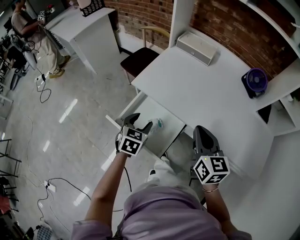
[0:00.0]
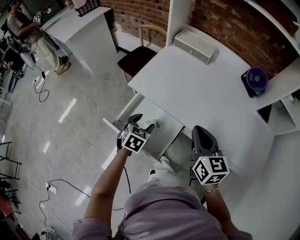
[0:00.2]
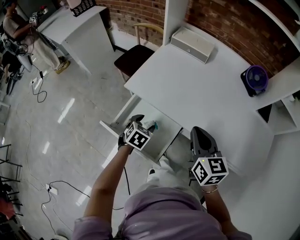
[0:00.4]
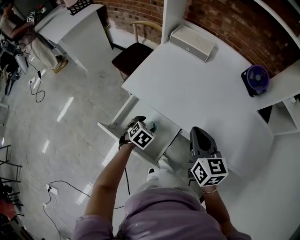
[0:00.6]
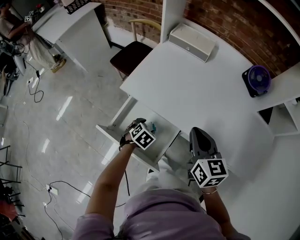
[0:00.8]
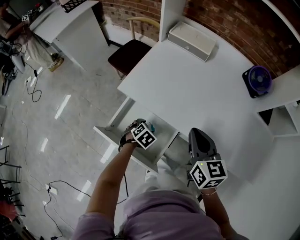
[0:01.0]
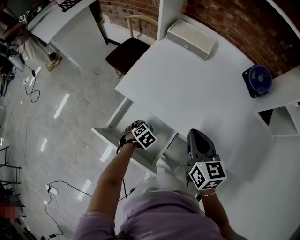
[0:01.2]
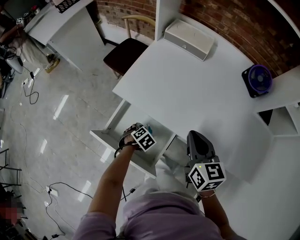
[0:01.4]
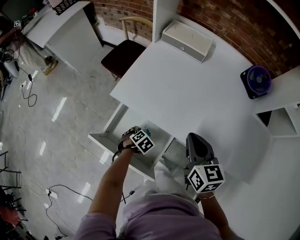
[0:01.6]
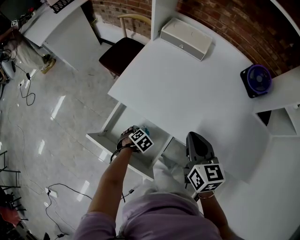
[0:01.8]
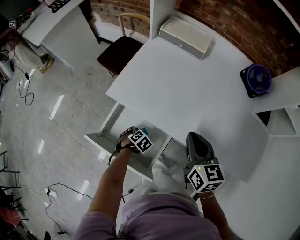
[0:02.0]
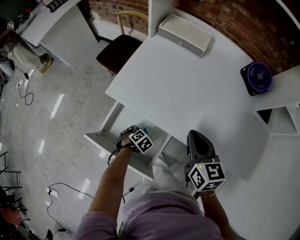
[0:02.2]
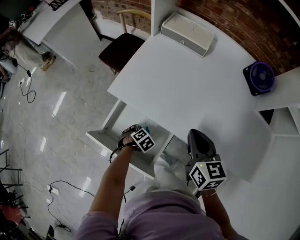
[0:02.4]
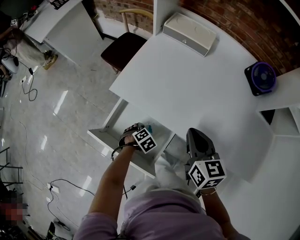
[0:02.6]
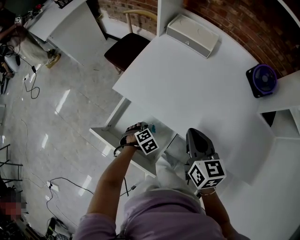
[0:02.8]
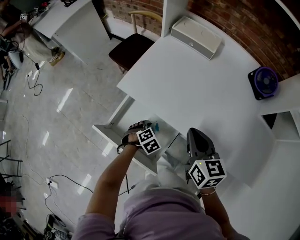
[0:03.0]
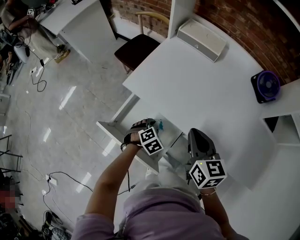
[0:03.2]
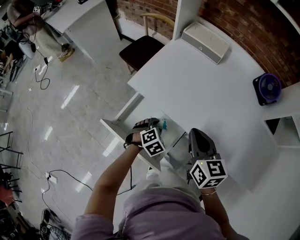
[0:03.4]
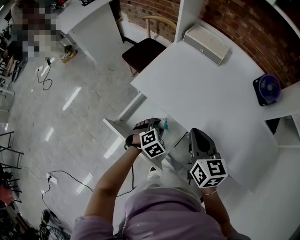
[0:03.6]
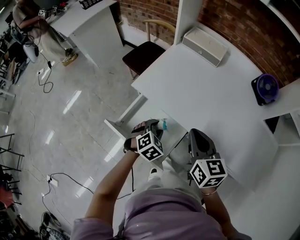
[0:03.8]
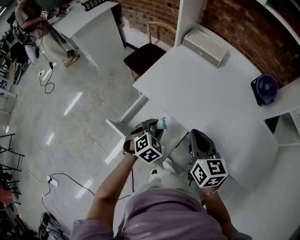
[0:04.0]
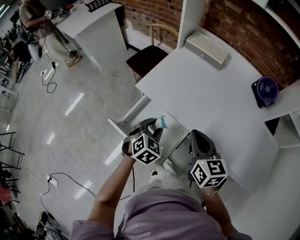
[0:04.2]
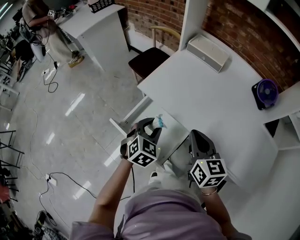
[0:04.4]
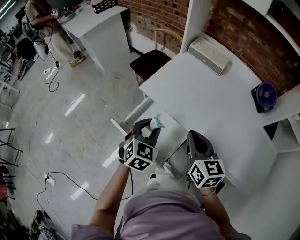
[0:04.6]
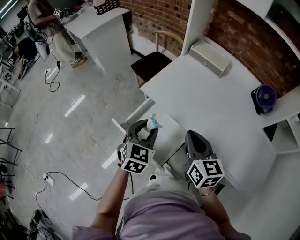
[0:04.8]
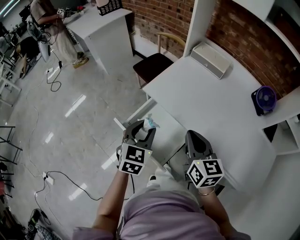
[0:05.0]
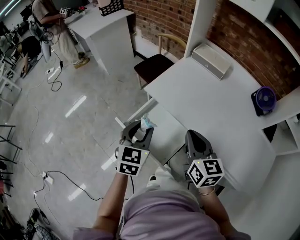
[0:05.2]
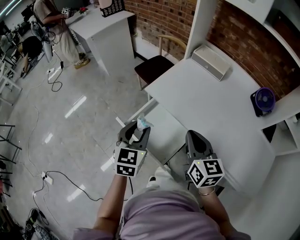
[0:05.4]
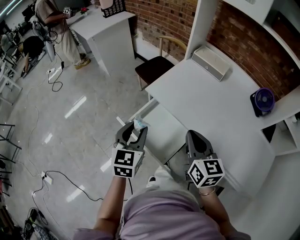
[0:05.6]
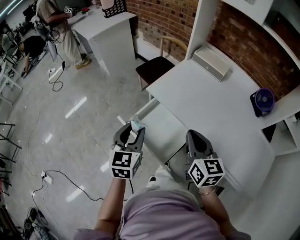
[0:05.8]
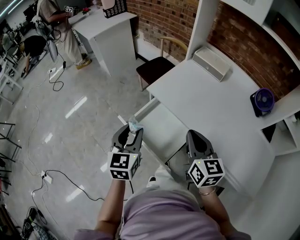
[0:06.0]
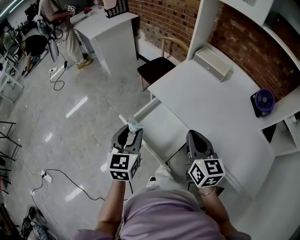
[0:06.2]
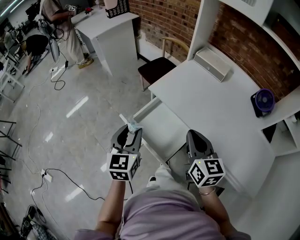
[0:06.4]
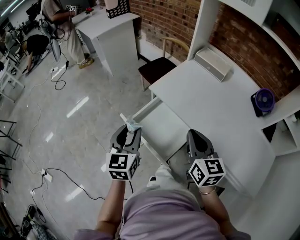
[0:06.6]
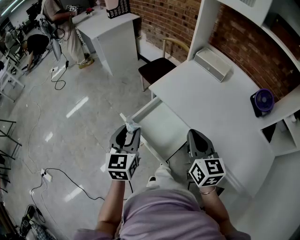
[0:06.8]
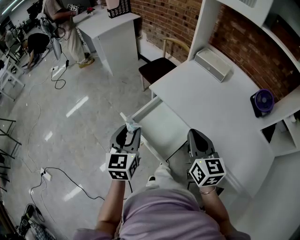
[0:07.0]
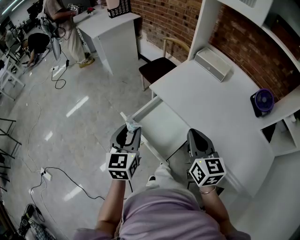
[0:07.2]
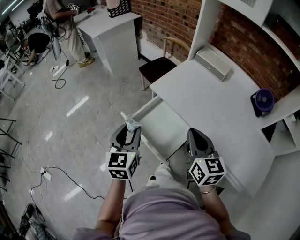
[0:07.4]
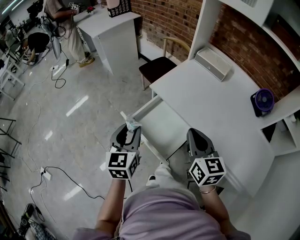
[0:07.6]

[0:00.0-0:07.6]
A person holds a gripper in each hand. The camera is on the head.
0:00.0 to 0:01.6: The left gripper moves downward, about 25 cm, and tips its fingers downward by about 40 degrees, while the right gripper moves some 10 cm.
0:01.6 to 0:03.0: The left gripper shifts by approximately 5 cm, and closes its fingers.
0:03.0 to 0:04.6: The left gripper moves upward, roughly 25 cm, and tips its fingers upward by roughly 40 degrees. Meanwhile the right gripper travels to the left by about 5 cm.
0:04.6 to 0:06.0: The left gripper goes some 15 cm to the left, upward and backward, and swivels some 30 degrees. Meanwhile the right gripper ends up approximately 5 cm from where it was.
0:06.0 to 0:07.6: There are only small adjustments of the grippers.

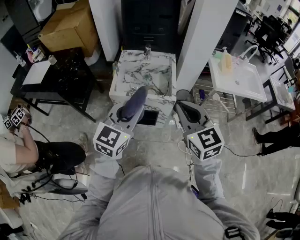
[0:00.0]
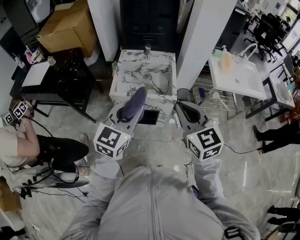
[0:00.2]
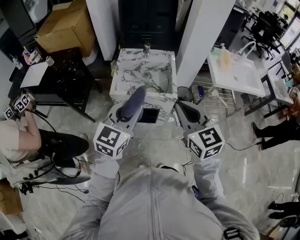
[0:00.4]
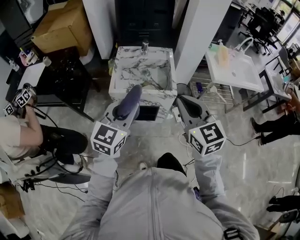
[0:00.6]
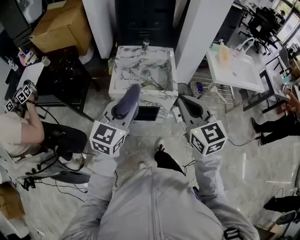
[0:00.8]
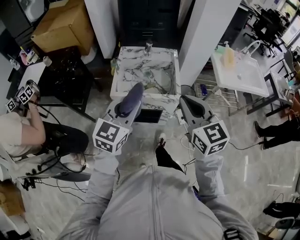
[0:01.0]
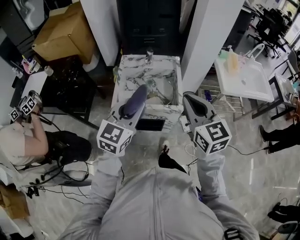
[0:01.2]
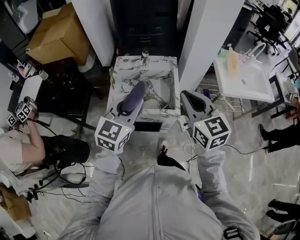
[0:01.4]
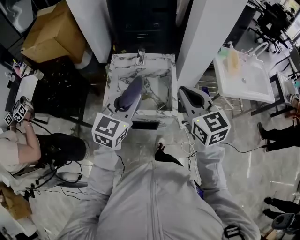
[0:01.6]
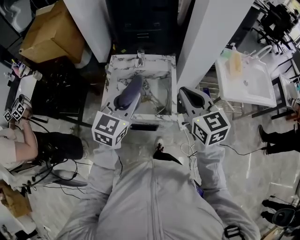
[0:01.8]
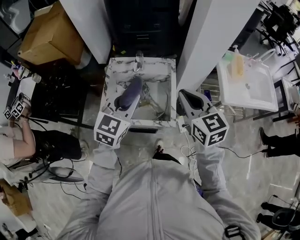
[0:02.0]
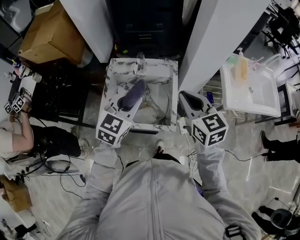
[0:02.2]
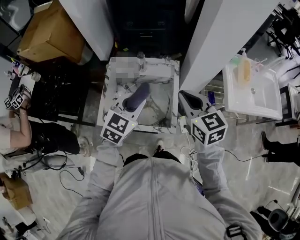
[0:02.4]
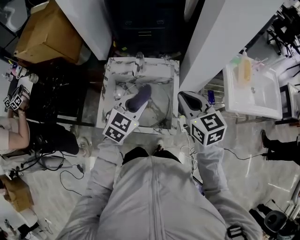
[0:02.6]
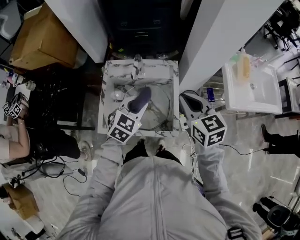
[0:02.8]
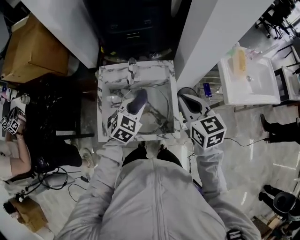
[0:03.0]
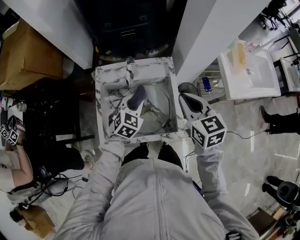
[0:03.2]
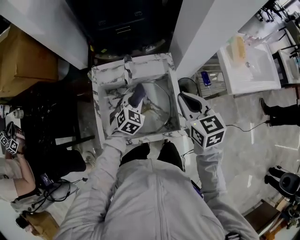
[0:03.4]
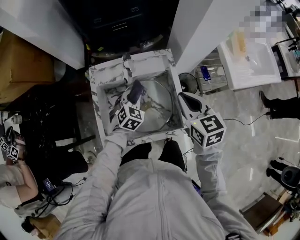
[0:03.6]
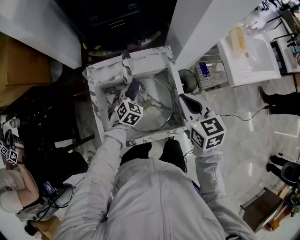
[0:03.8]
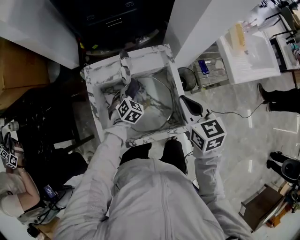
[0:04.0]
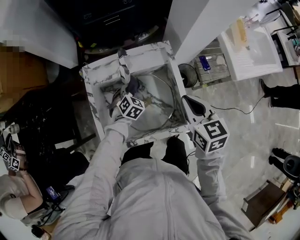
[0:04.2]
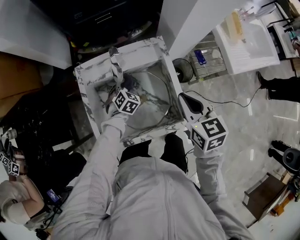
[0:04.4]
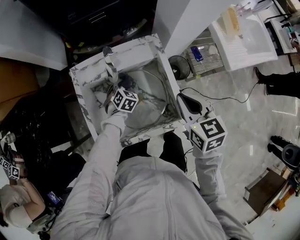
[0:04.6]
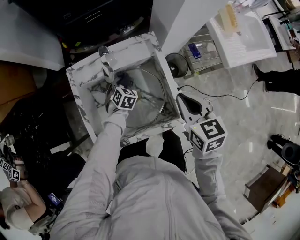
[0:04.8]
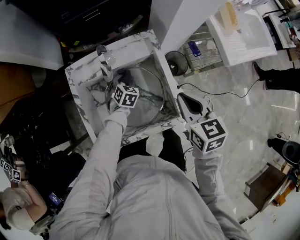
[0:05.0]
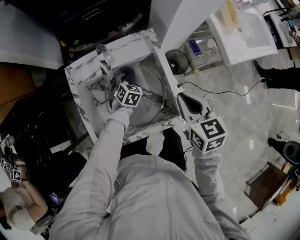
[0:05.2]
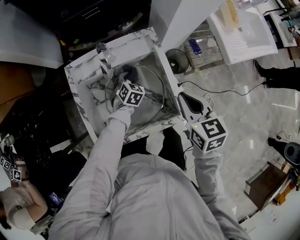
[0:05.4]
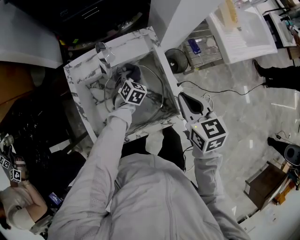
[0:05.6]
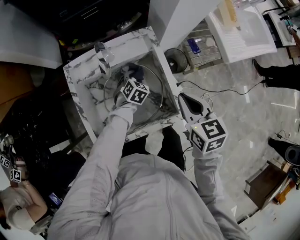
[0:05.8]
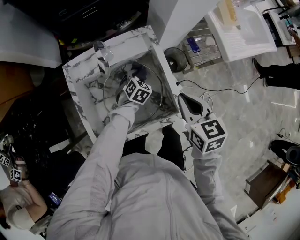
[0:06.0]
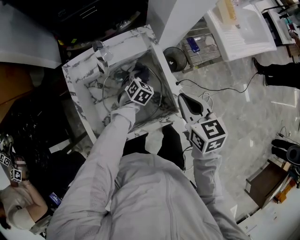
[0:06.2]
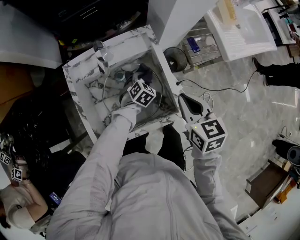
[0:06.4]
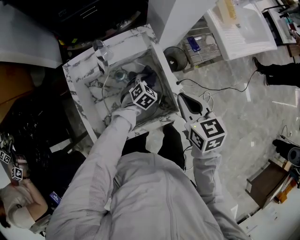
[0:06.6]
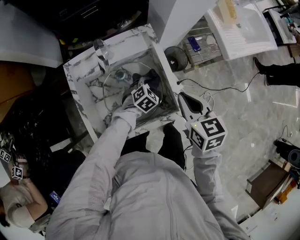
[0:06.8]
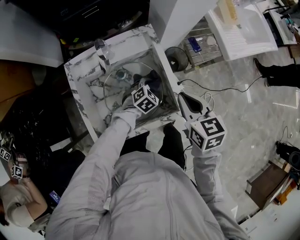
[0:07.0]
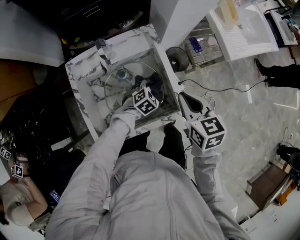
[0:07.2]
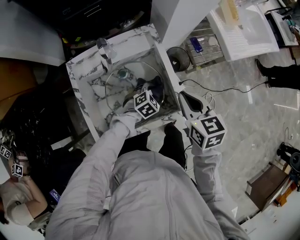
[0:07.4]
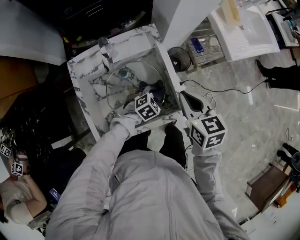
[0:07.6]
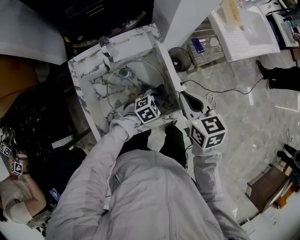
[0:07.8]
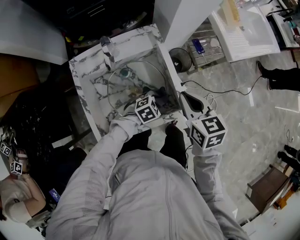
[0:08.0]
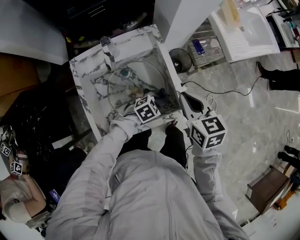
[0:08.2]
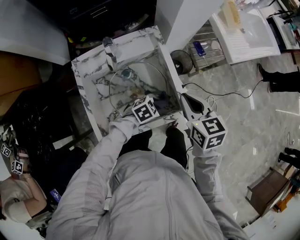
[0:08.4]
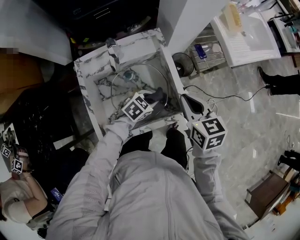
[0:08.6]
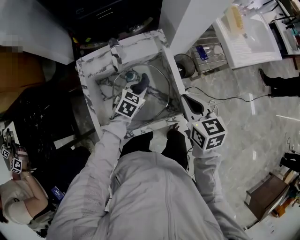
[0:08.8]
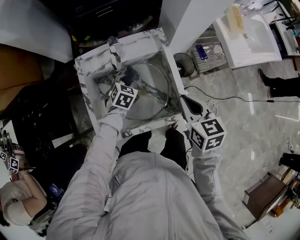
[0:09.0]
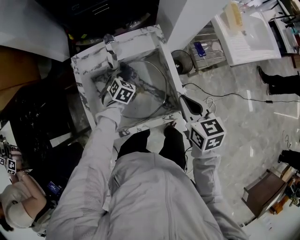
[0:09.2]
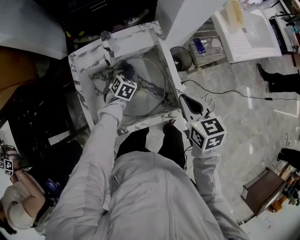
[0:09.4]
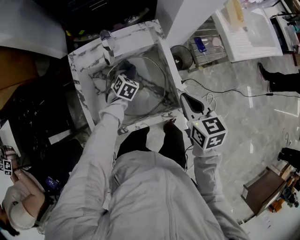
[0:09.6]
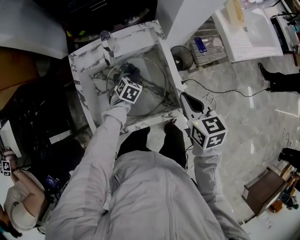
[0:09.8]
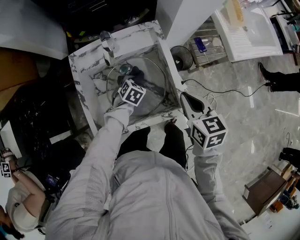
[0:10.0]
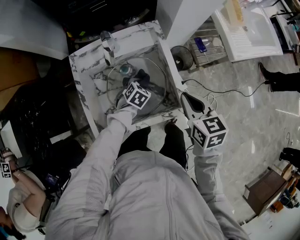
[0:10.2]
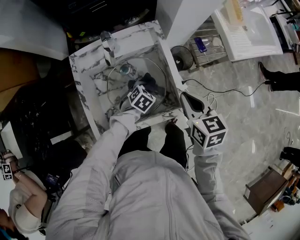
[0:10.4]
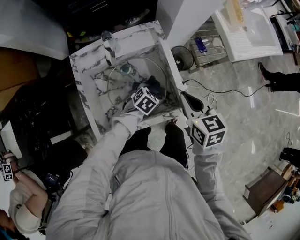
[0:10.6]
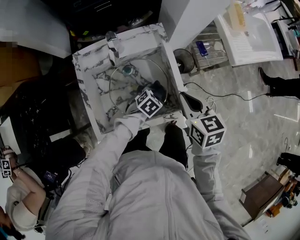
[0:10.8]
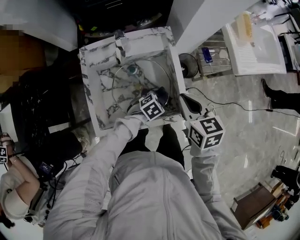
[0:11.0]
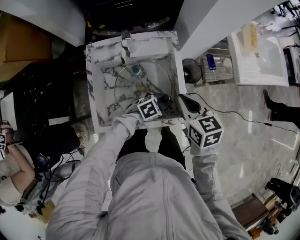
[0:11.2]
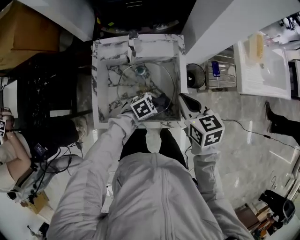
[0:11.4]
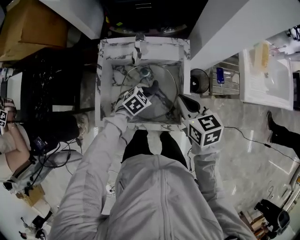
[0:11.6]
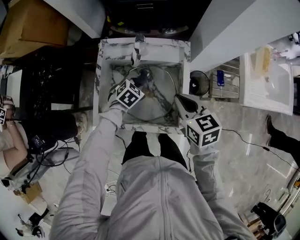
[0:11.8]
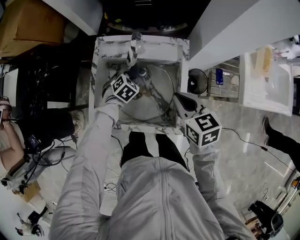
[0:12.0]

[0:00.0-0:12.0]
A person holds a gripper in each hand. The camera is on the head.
0:00.0 to 0:01.6: Both grippers travel together forward, about 20 cm.
0:01.6 to 0:03.0: The left gripper moves downward and forward, some 25 cm, and swivels approximately 30 degrees. Meanwhile the right gripper is displaced forward and downward by some 20 cm.
0:03.0 to 0:04.4: The right gripper heads downward, covering roughly 10 cm; the left gripper shifts some 25 cm downward and forward.
0:04.4 to 0:06.0: The left gripper travels to the right by roughly 10 cm.
0:06.0 to 0:07.6: The left gripper moves backward and to the right, roughly 15 cm, and changes its angle by approximately 30 degrees.
0:07.6 to 0:09.0: The left gripper moves about 20 cm, and swivels roughly 30 degrees.
0:09.0 to 0:10.4: The left gripper is displaced to the right, backward and downward by approximately 15 cm.
0:10.4 to 0:12.0: The left gripper moves some 15 cm, and turns by some 20 degrees. Meanwhile the right gripper shifts by roughly 10 cm, and changes its angle by approximately 30 degrees.

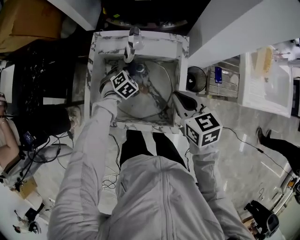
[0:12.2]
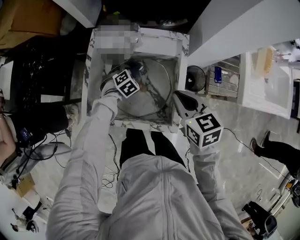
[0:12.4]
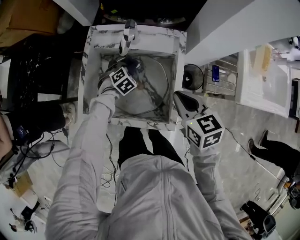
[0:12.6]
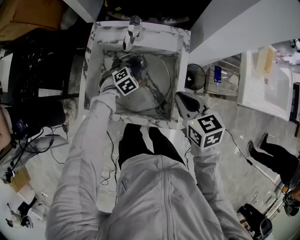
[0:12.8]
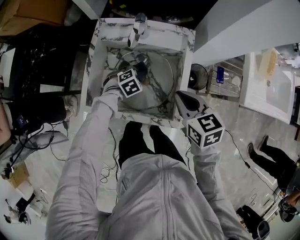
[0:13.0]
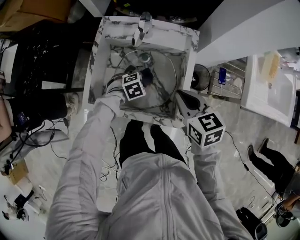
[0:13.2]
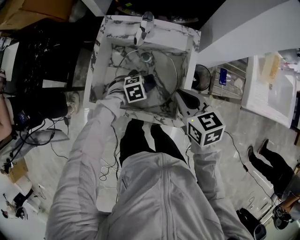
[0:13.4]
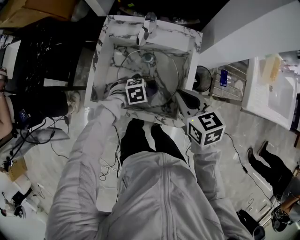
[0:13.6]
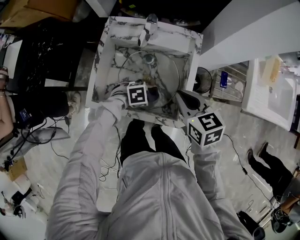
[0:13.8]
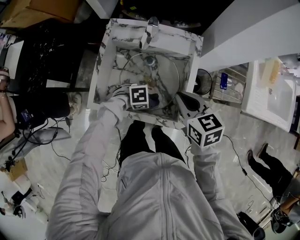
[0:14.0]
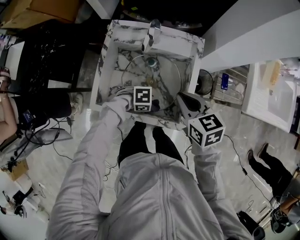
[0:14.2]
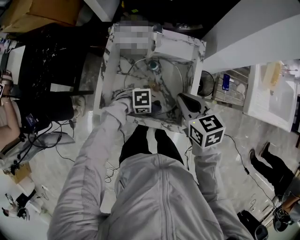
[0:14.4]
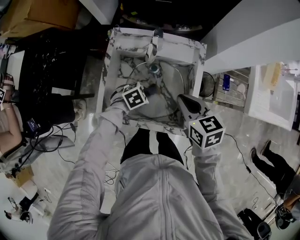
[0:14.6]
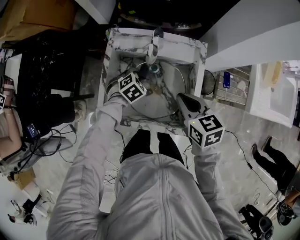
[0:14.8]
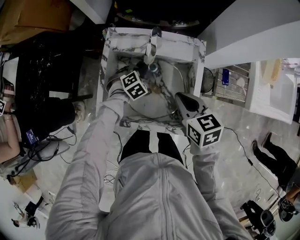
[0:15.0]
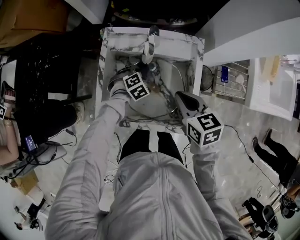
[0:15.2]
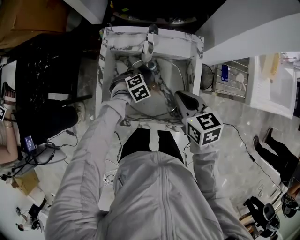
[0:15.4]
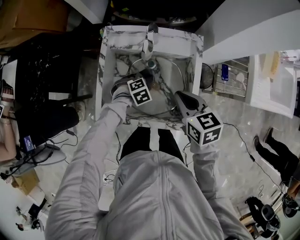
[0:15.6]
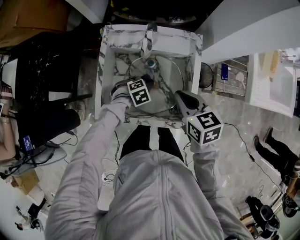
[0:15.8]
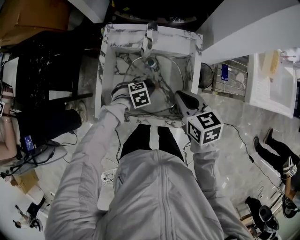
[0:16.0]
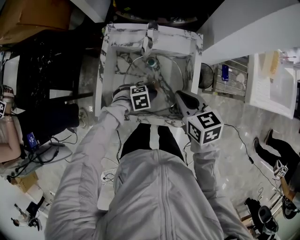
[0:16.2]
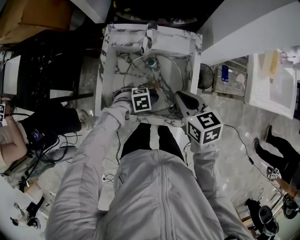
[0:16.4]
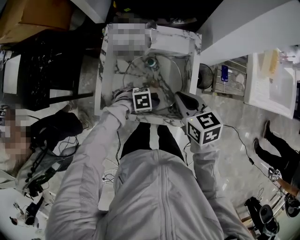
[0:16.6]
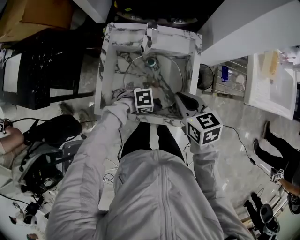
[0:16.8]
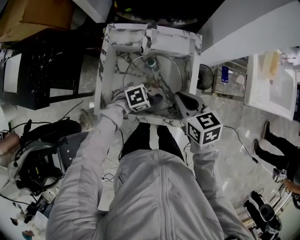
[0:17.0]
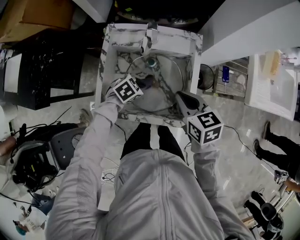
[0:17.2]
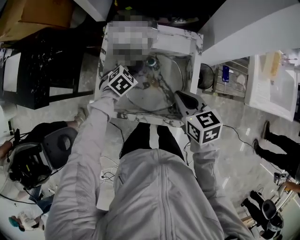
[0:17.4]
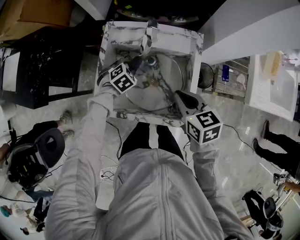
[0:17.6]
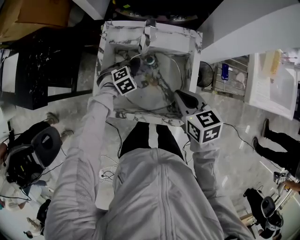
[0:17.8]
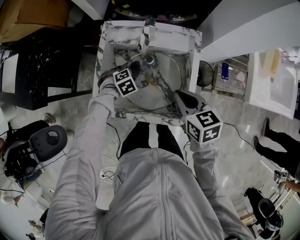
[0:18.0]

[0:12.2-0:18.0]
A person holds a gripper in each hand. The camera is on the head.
0:12.2 to 0:13.6: The left gripper ends up roughly 20 cm from where it was, and changes its angle by approximately 40 degrees.
0:13.6 to 0:15.0: The right gripper moves approximately 5 cm. The left gripper moves roughly 20 cm, and turns by roughly 30 degrees.
0:15.0 to 0:16.6: The left gripper changes place by approximately 20 cm, and rotates approximately 40 degrees.
0:16.6 to 0:18.0: The left gripper ends up about 20 cm from where it was, and changes its angle by some 30 degrees.
